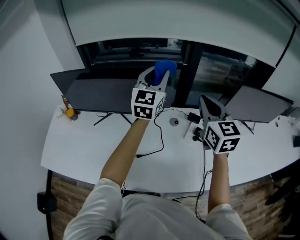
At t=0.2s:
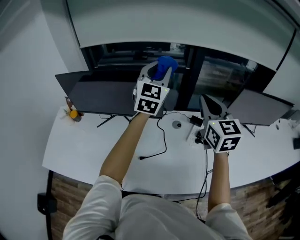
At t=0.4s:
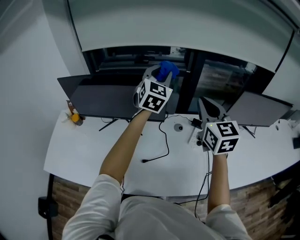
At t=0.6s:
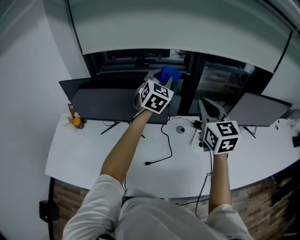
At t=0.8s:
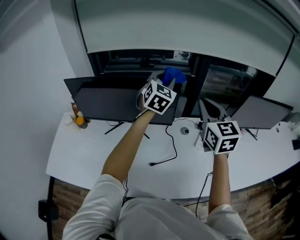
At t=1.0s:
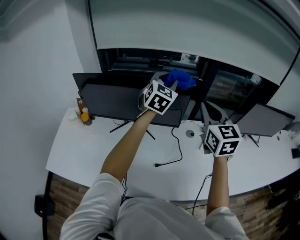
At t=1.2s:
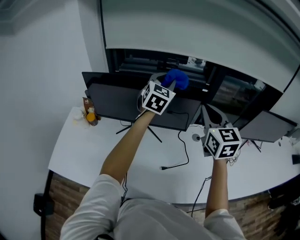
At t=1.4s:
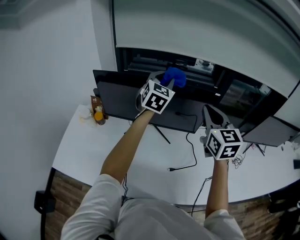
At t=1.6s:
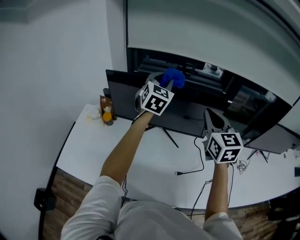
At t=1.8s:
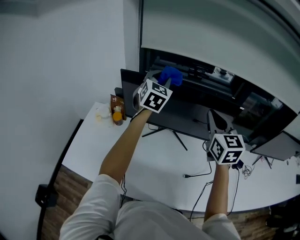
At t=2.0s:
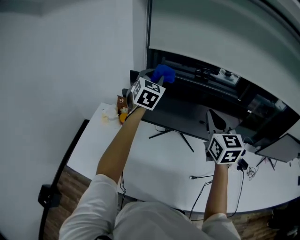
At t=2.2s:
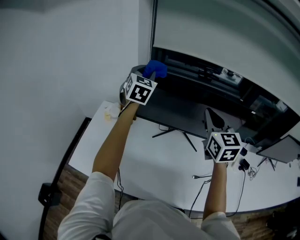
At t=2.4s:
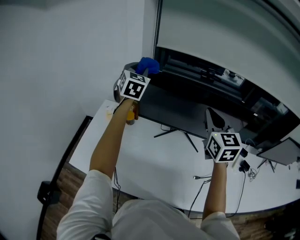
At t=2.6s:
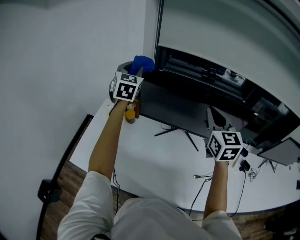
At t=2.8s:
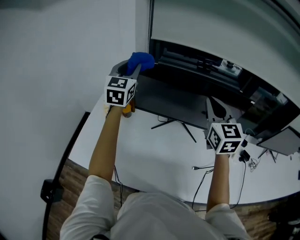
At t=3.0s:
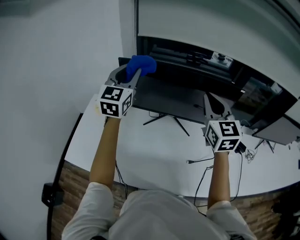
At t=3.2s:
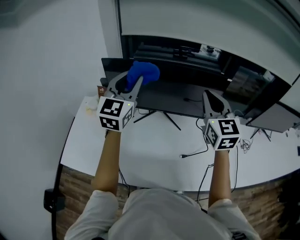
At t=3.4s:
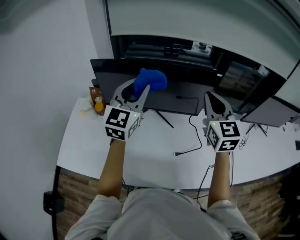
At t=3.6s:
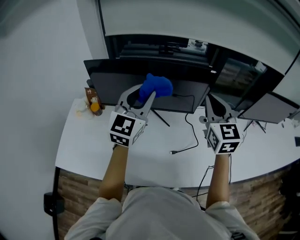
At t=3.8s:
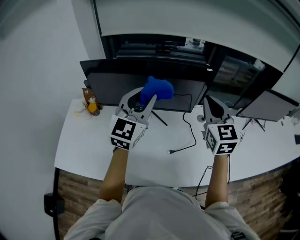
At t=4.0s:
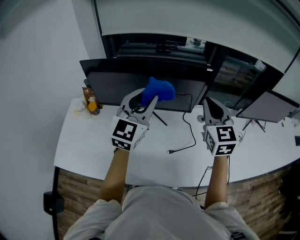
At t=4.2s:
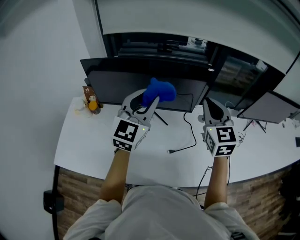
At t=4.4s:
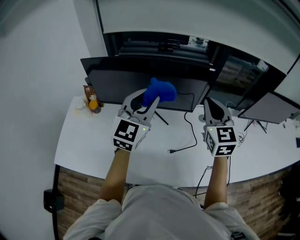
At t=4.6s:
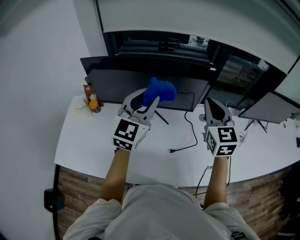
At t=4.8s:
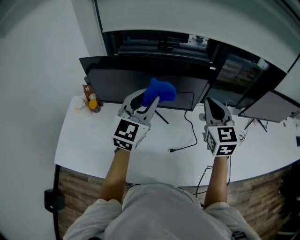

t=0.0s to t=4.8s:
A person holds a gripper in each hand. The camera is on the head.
t=0.0s to t=1.6s: The grippers both shift to the left by approximately 30 cm. The left gripper turns by some 20 degrees.
t=1.6s to t=3.2s: The right gripper reaches about 15 cm to the left, then returns; the left gripper heads backward and to the left, covering some 15 cm.
t=3.2s to t=4.8s: Both grippers travel together to the right, some 15 cm.

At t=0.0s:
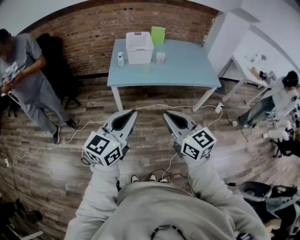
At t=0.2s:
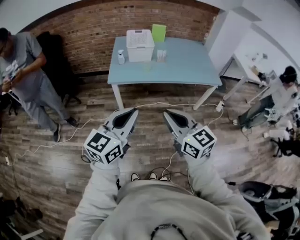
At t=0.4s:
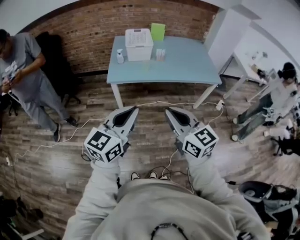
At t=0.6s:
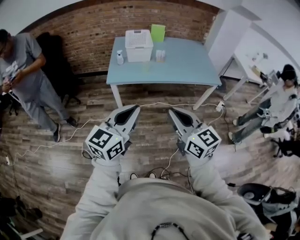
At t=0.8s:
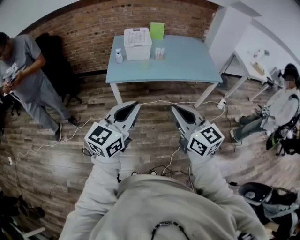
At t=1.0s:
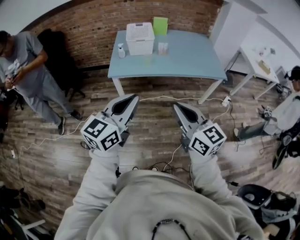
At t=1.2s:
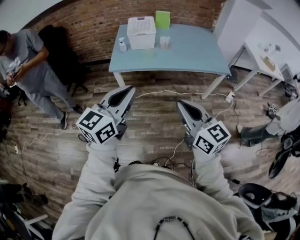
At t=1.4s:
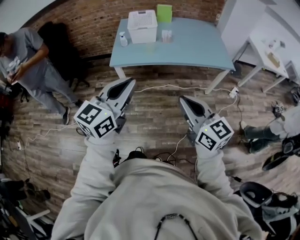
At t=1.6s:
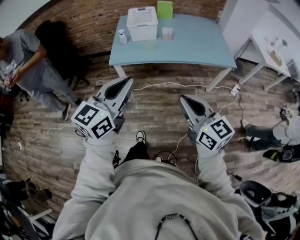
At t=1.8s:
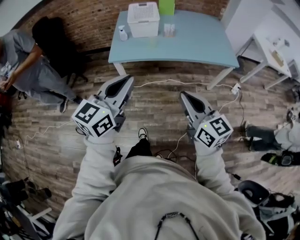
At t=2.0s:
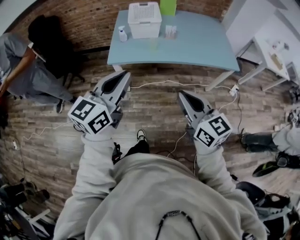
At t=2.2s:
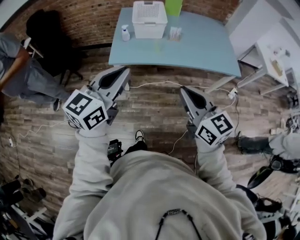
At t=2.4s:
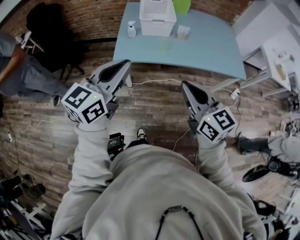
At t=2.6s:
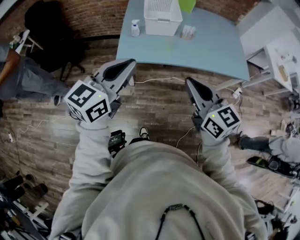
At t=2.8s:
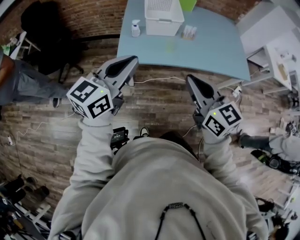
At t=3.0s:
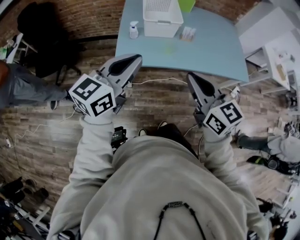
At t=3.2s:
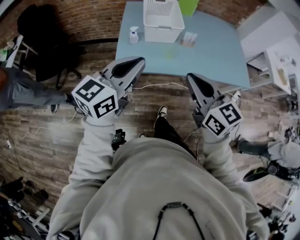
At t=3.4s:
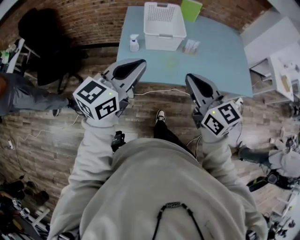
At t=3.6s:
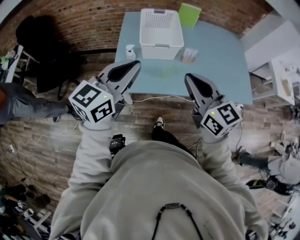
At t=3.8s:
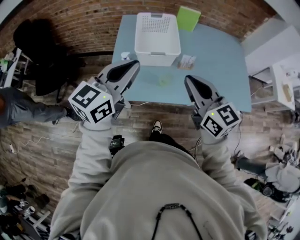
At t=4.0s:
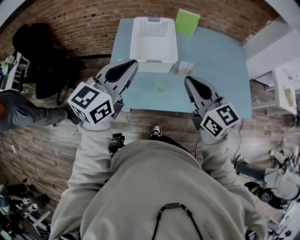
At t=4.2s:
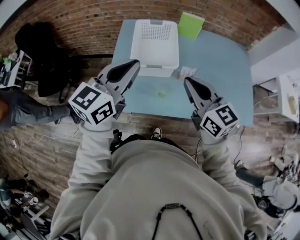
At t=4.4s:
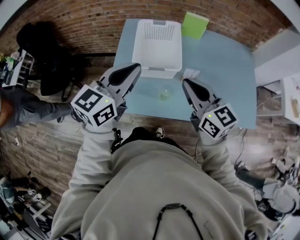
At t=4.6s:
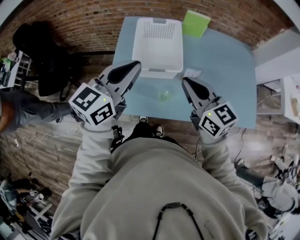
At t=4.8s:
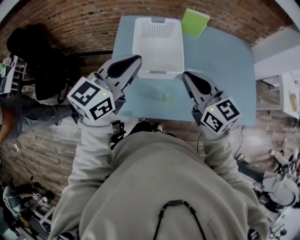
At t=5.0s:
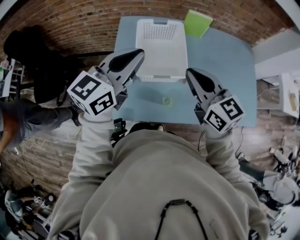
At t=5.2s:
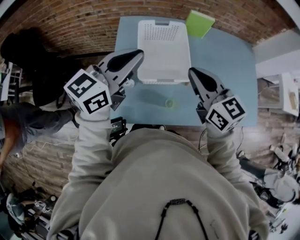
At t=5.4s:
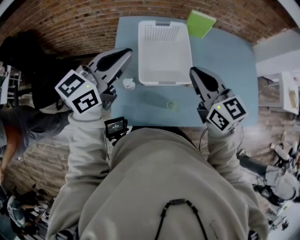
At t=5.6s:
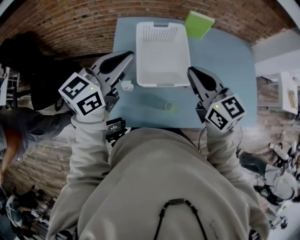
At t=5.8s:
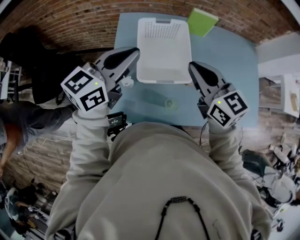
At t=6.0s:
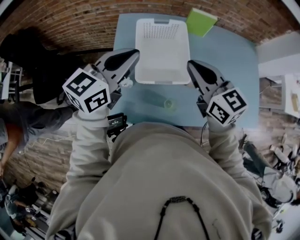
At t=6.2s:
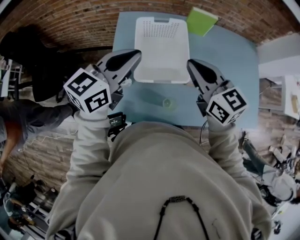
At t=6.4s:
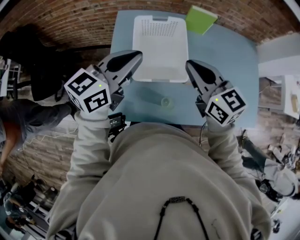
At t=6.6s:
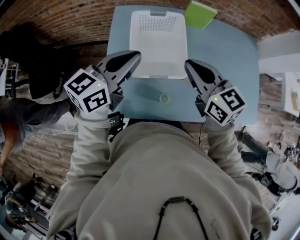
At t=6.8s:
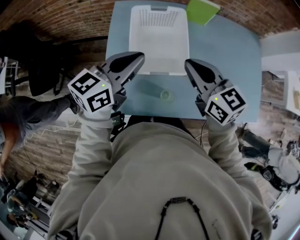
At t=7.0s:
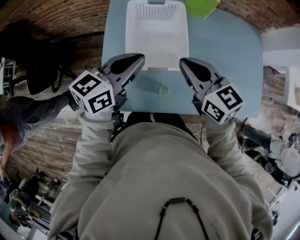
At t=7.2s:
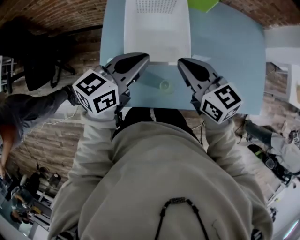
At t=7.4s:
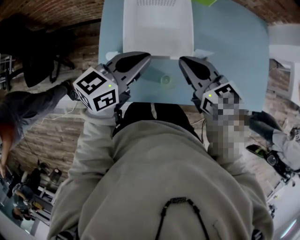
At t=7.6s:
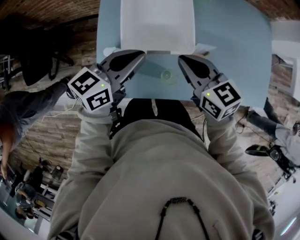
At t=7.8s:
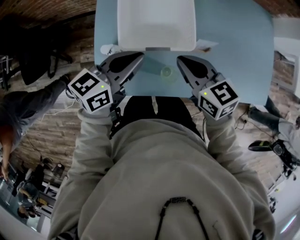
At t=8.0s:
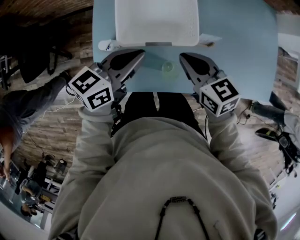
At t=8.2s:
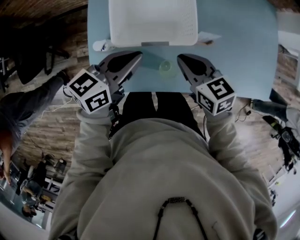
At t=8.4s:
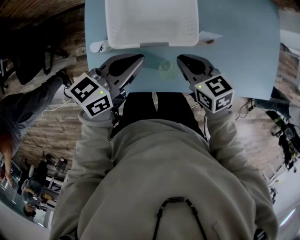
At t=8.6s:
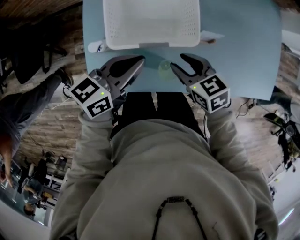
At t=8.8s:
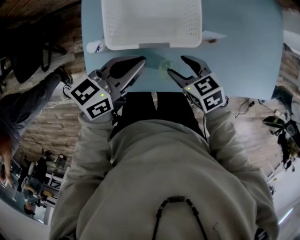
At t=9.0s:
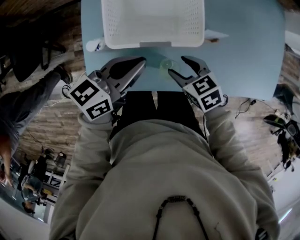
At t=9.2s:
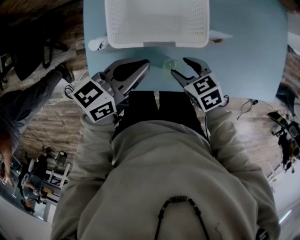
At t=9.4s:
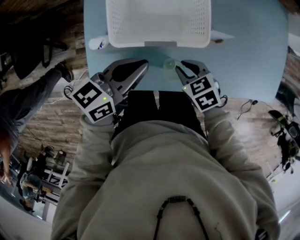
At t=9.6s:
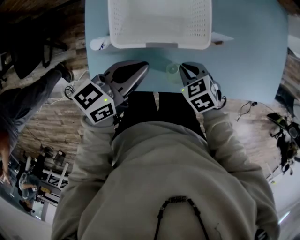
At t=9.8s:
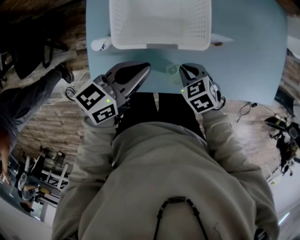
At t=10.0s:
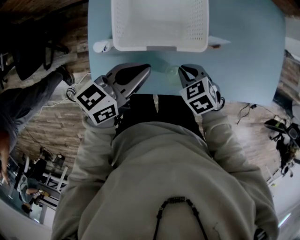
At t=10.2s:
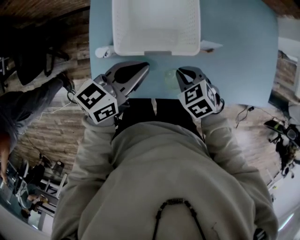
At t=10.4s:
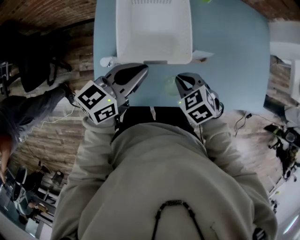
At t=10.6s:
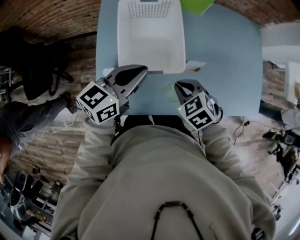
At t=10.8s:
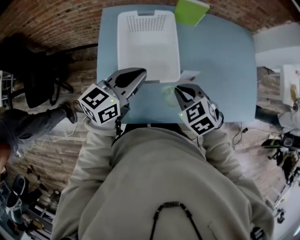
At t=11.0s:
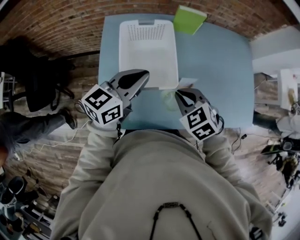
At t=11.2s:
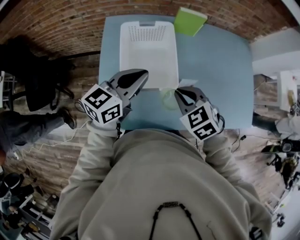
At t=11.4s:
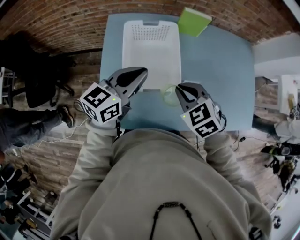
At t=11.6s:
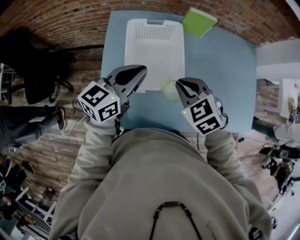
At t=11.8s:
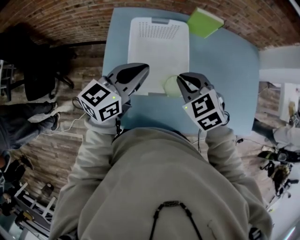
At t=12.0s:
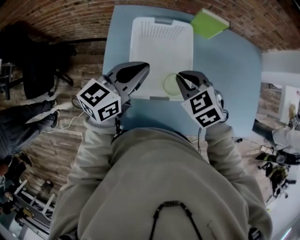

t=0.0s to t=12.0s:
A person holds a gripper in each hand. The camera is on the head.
t=0.0s to t=1.6s: The left gripper goes some 10 cm to the right and forward, while the right gripper goes some 10 cm to the right.
t=1.6s to t=3.0s: Both grippers travel together forward and to the left, some 30 cm.
t=3.0s to t=4.4s: Both grippers move forward, about 30 cm.
t=4.4s to t=6.0s: Both grippers travel together forward, roughly 15 cm.
t=6.0s to t=7.6s: The right gripper goes roughly 15 cm downward. Meanwhile the left gripper goes roughly 15 cm downward and to the right.
t=7.6s to t=9.0s: The right gripper goes approximately 20 cm downward, changes its angle by some 30 degrees, and opens. The left gripper travels downward by some 10 cm.
t=9.0s to t=10.4s: Both grippers move upward, approximately 5 cm. The right gripper turns by roughly 20 degrees, and closes up.
t=10.4s to t=12.0s: The grippers both shift forward, upward and to the left by about 15 cm.

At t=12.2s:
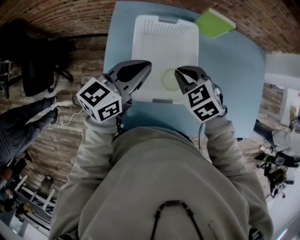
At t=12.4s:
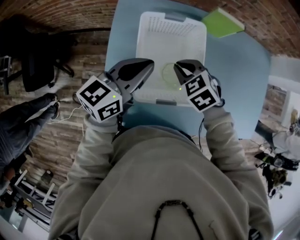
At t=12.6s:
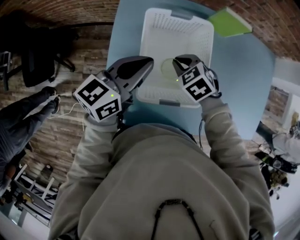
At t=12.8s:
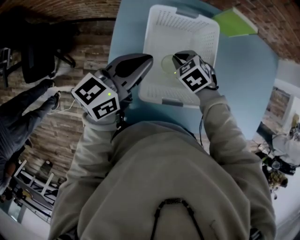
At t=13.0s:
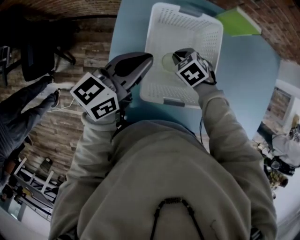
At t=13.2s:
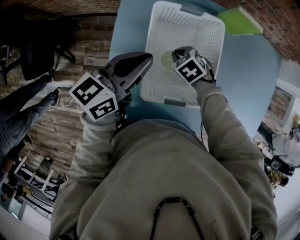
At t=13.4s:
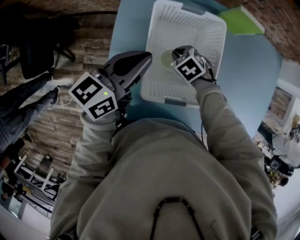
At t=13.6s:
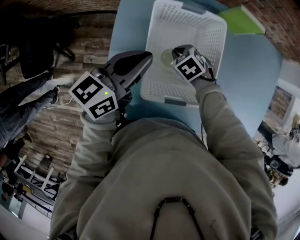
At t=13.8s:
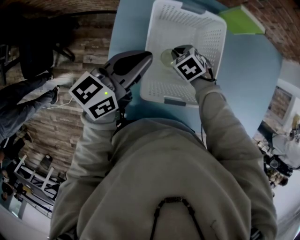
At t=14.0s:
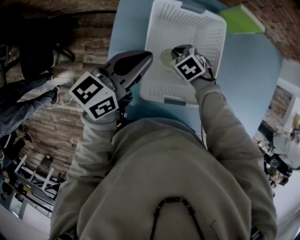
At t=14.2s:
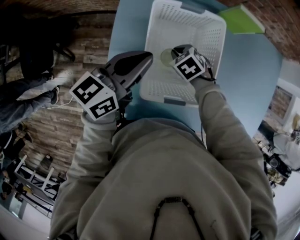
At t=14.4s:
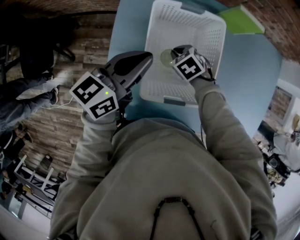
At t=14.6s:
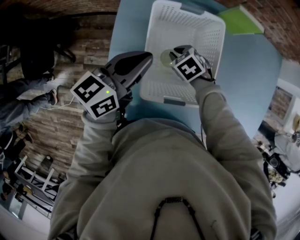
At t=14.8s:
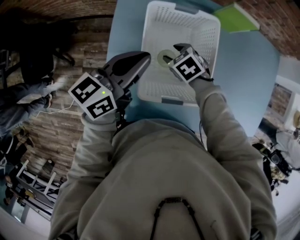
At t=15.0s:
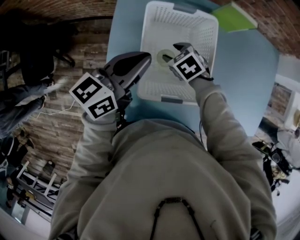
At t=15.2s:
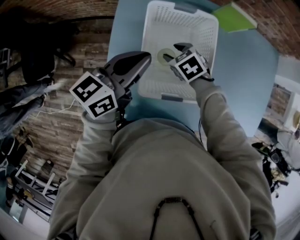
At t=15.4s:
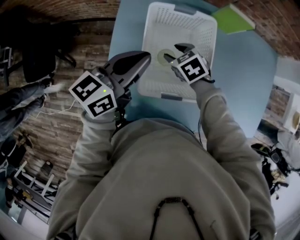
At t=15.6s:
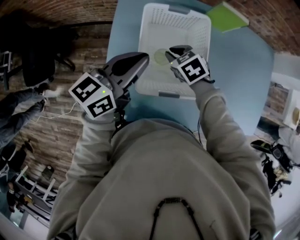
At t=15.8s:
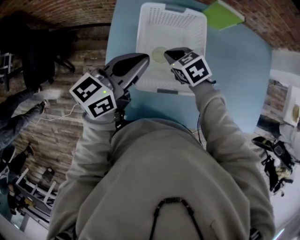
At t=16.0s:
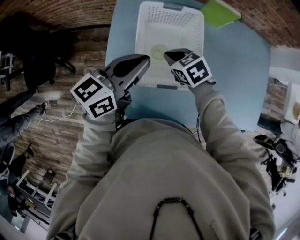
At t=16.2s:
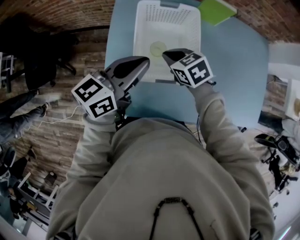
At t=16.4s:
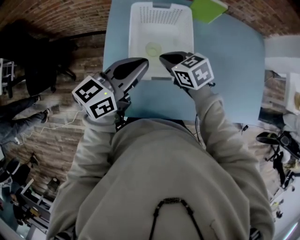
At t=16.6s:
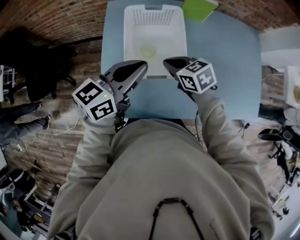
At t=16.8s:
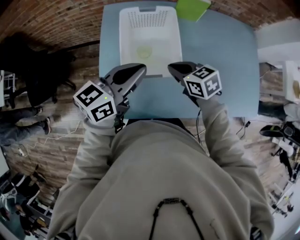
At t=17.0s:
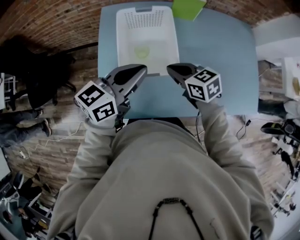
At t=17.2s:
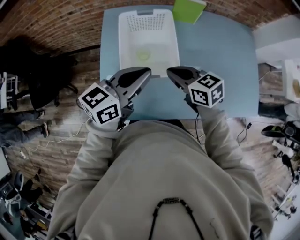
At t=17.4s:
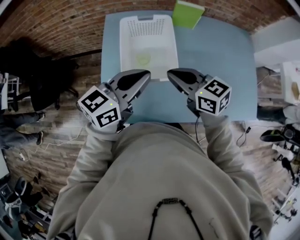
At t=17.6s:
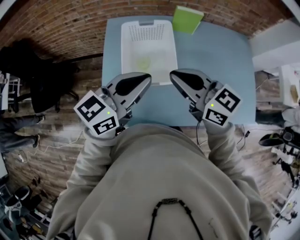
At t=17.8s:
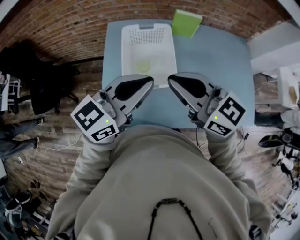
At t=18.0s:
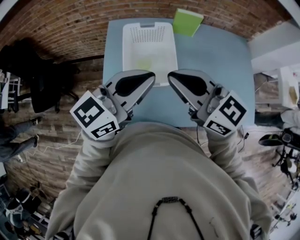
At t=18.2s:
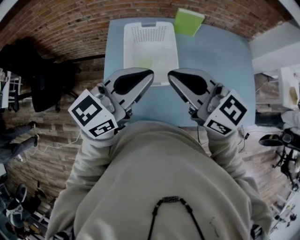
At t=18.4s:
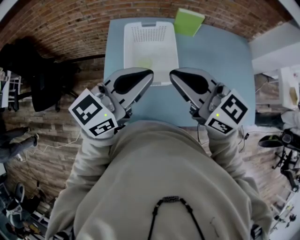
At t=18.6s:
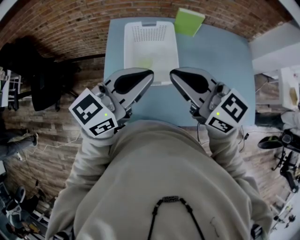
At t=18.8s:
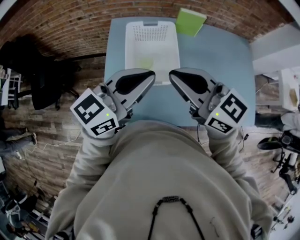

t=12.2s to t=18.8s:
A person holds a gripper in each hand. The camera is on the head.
t=12.2s to t=13.8s: The right gripper goes some 20 cm downward. The left gripper changes place by about 5 cm.
t=13.8s to t=15.4s: The right gripper is displaced upward by approximately 5 cm, and opens.
t=15.4s to t=17.2s: The right gripper travels backward, upward and to the right by roughly 25 cm, points its fingers about 30 degrees further upward, and closes; the left gripper shifts about 20 cm backward, to the right and upward.
t=17.2s to t=18.8s: The left gripper heads upward, covering approximately 10 cm, while the right gripper goes approximately 20 cm upward, and swivels about 30 degrees.
